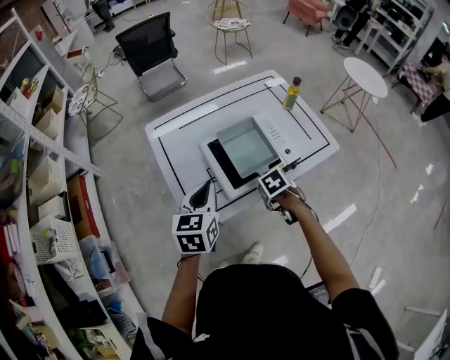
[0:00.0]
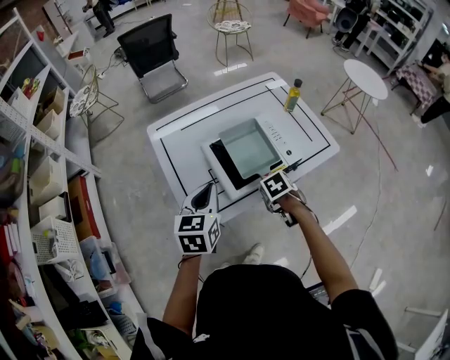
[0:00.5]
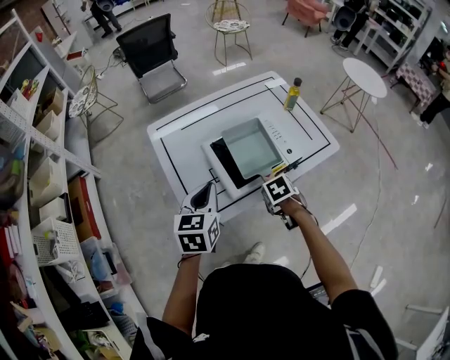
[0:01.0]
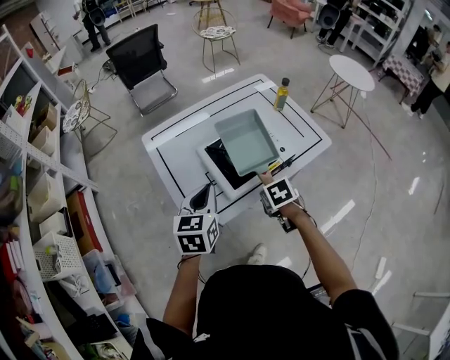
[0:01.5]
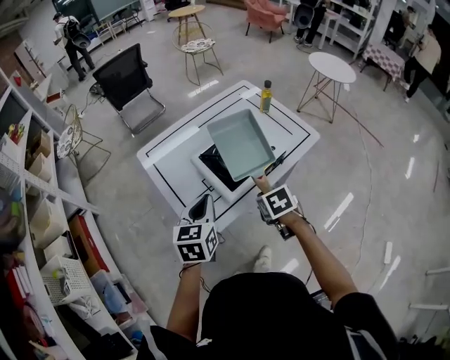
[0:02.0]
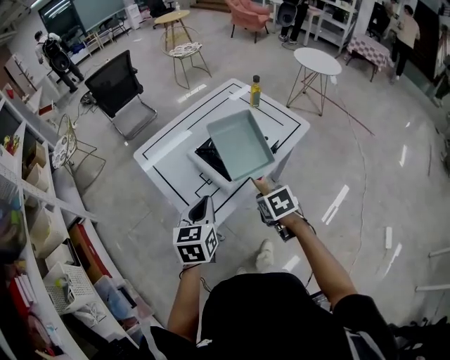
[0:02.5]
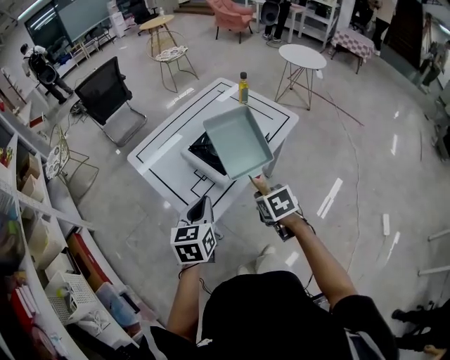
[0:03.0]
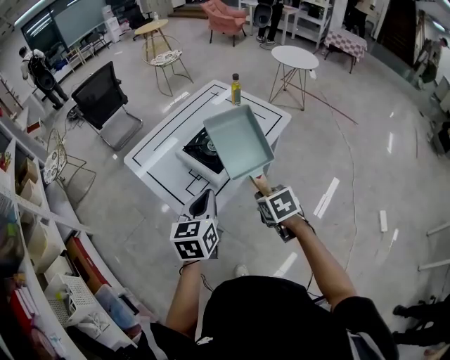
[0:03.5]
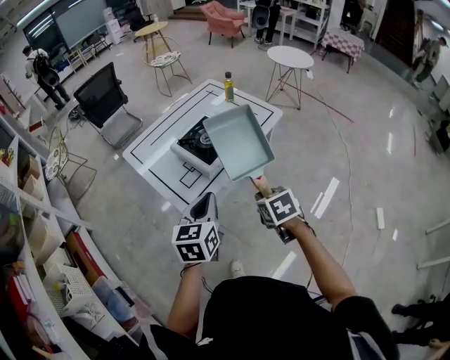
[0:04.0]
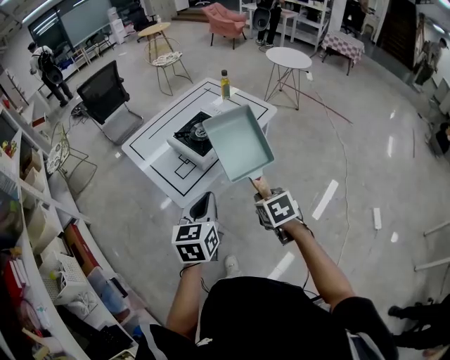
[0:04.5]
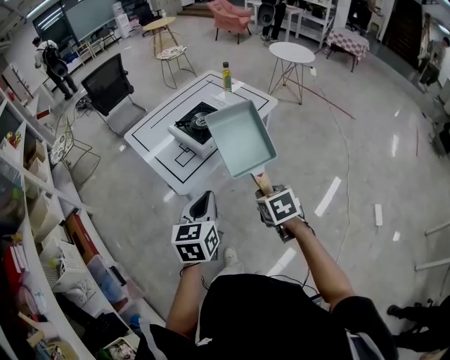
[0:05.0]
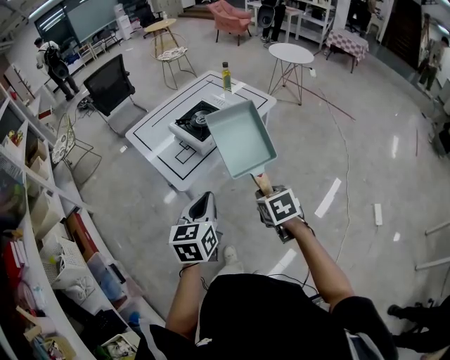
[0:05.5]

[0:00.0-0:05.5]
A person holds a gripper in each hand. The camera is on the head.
0:00.0 to 0:02.0: The right gripper moves upward, approximately 10 cm, and turns by some 30 degrees.
0:02.0 to 0:03.5: The grippers both shift backward by approximately 10 cm.
0:03.5 to 0:05.5: Both grippers move backward, about 20 cm.

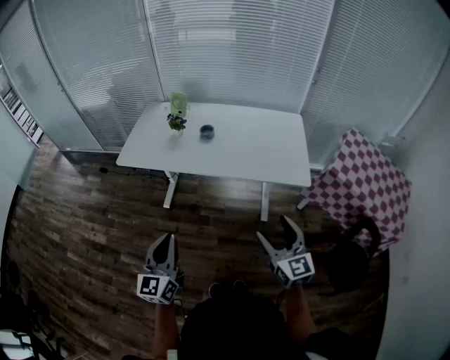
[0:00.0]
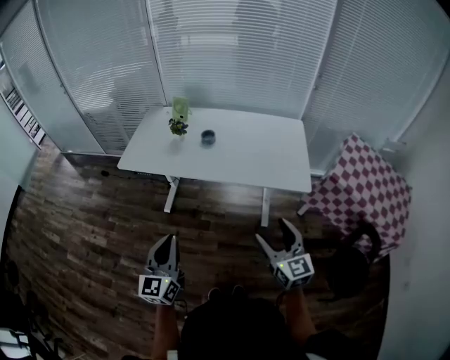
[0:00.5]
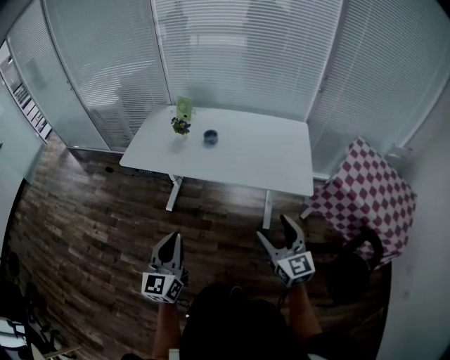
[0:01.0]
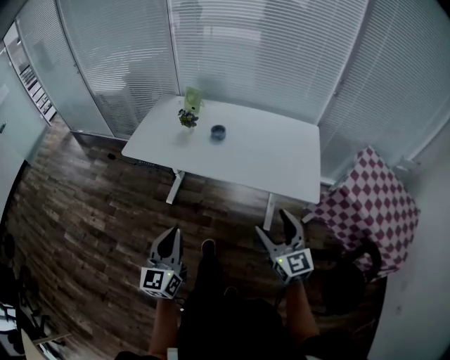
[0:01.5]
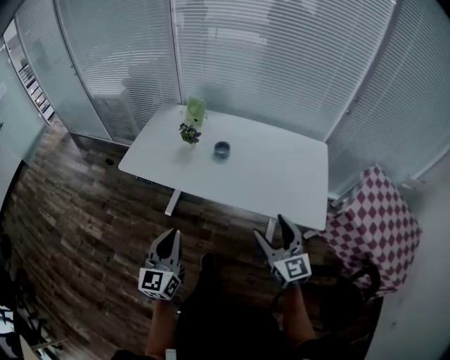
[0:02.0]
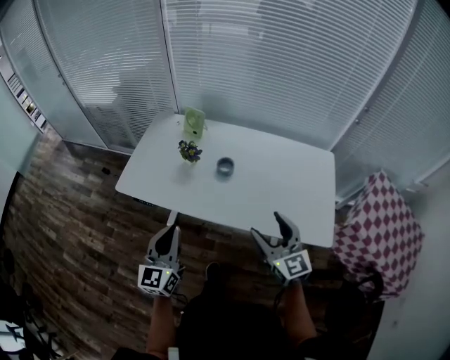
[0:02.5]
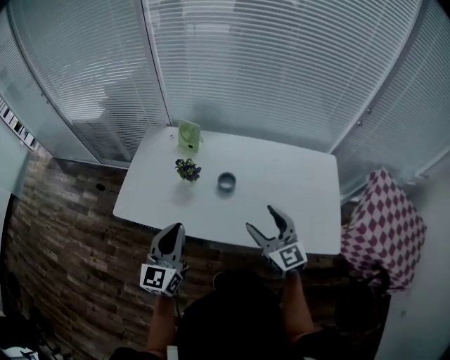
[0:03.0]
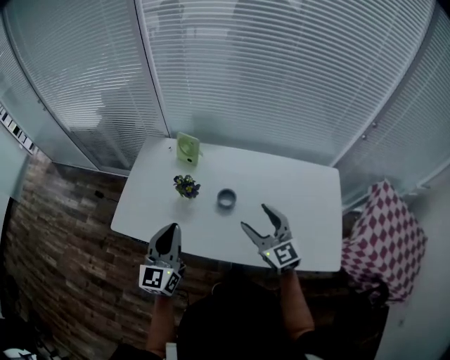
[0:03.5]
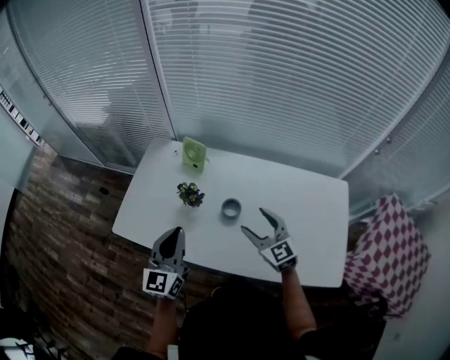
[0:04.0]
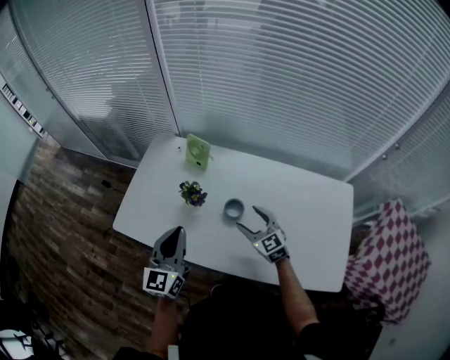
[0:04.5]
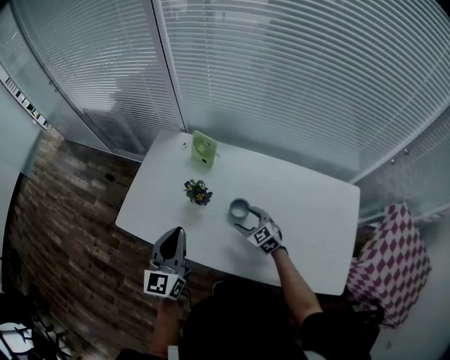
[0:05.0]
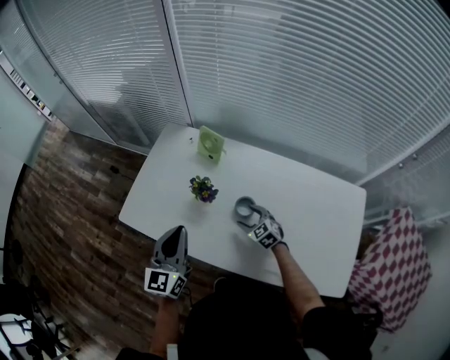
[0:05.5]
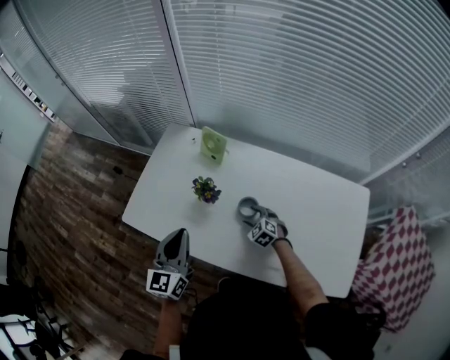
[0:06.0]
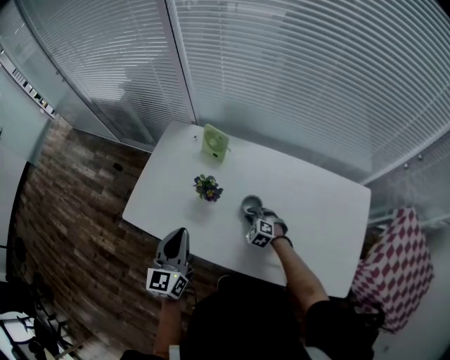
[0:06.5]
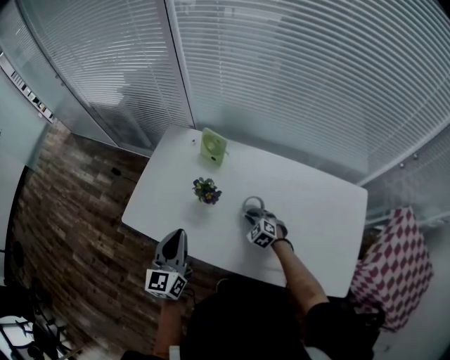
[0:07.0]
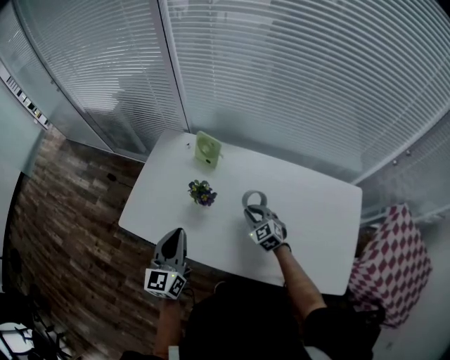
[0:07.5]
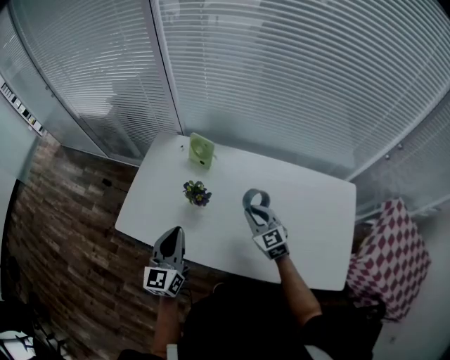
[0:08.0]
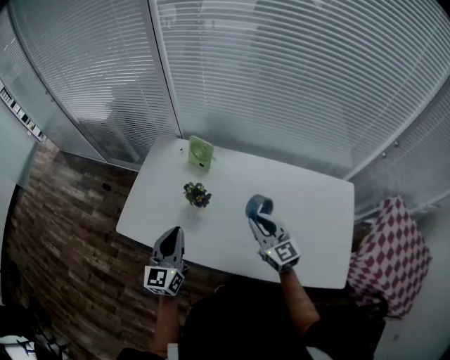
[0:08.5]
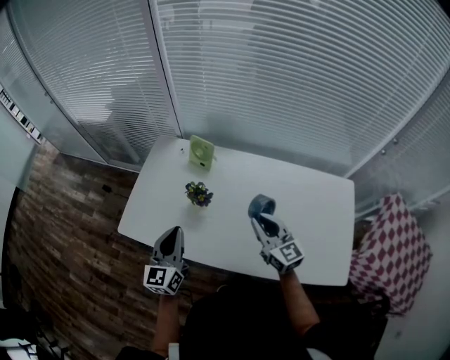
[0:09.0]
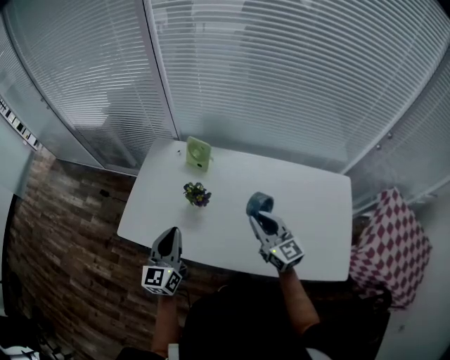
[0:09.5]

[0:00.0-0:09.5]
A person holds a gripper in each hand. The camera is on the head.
0:00.0 to 0:02.0: Both grippers travel together forward, about 15 cm.
0:02.0 to 0:04.0: The grippers both shift forward by some 30 cm.
0:04.0 to 0:05.5: The right gripper goes approximately 20 cm downward, and swivels roughly 30 degrees.
0:05.5 to 0:07.5: The right gripper is displaced upward by roughly 5 cm, and closes.
0:07.5 to 0:09.5: The right gripper is displaced upward by roughly 20 cm, and tilts its fingers some 40 degrees upward.

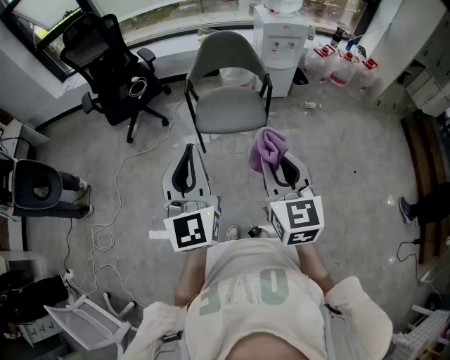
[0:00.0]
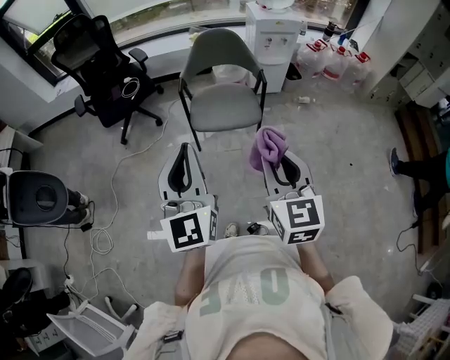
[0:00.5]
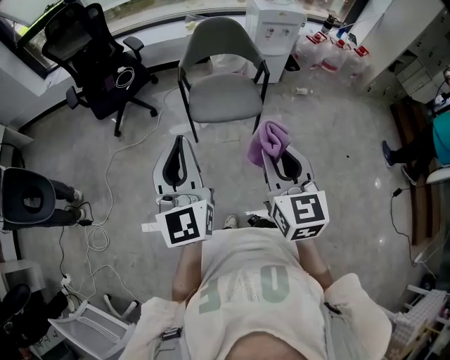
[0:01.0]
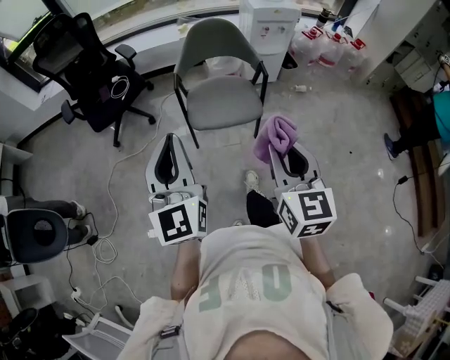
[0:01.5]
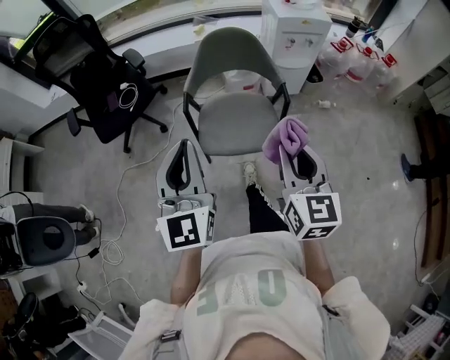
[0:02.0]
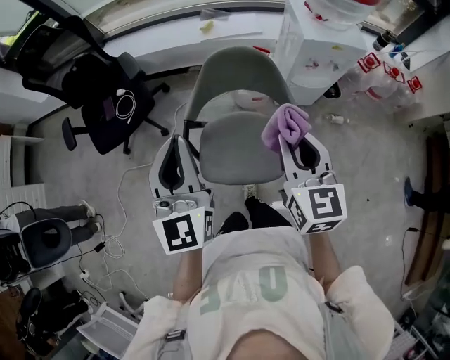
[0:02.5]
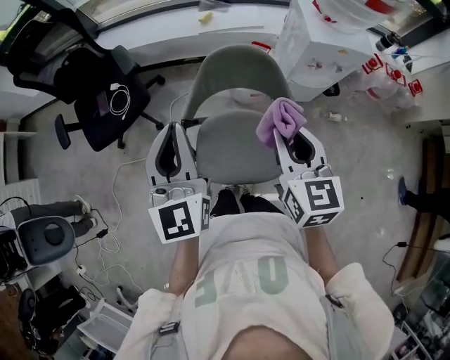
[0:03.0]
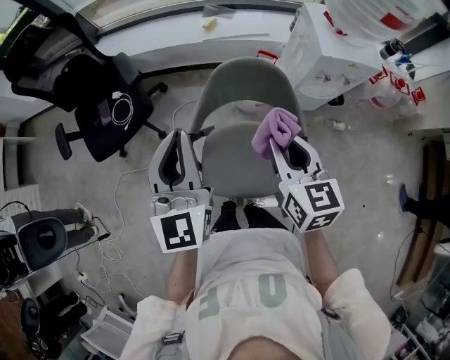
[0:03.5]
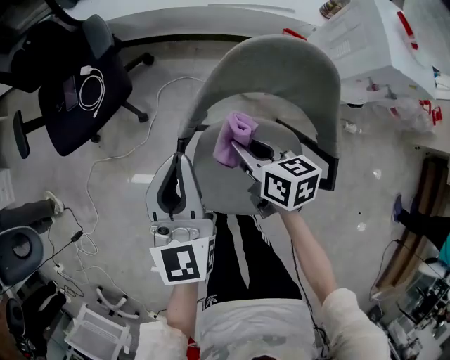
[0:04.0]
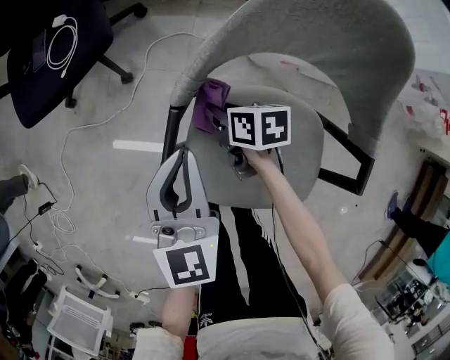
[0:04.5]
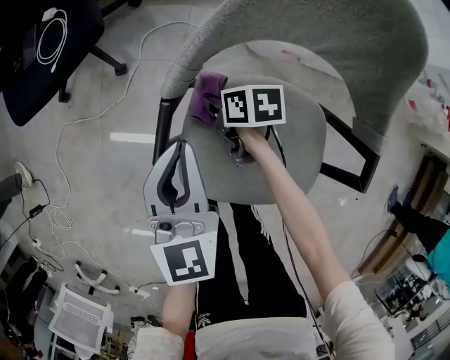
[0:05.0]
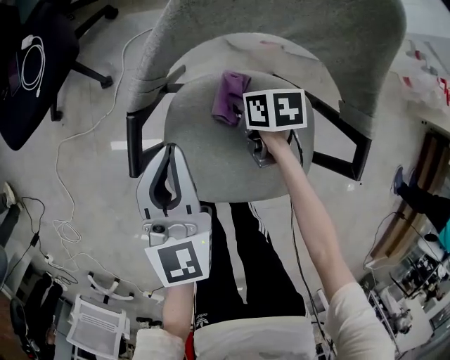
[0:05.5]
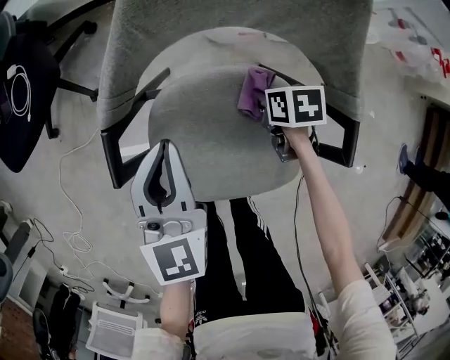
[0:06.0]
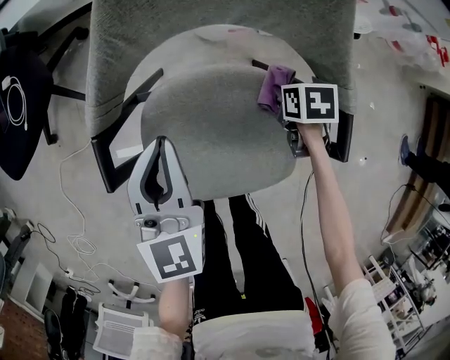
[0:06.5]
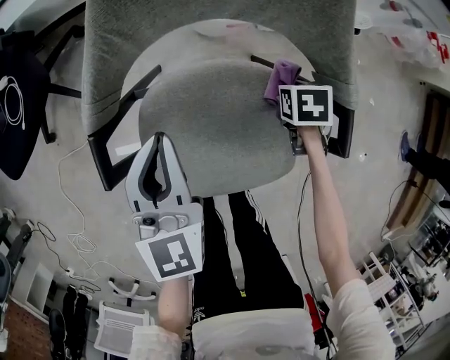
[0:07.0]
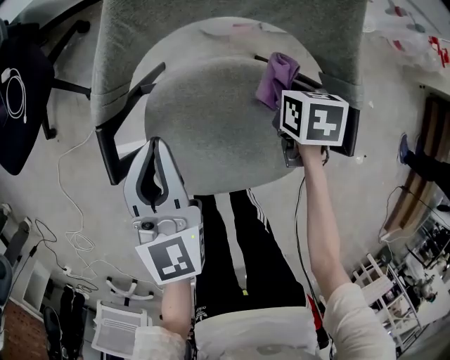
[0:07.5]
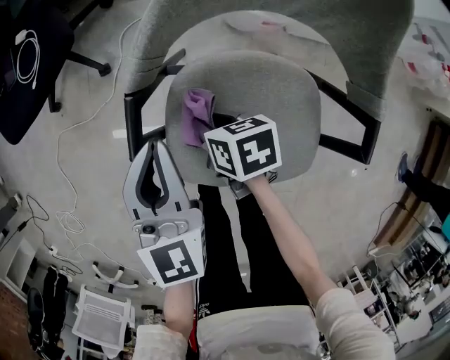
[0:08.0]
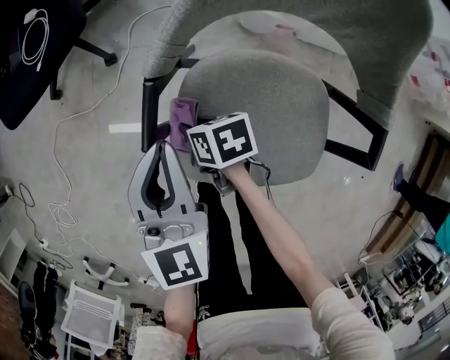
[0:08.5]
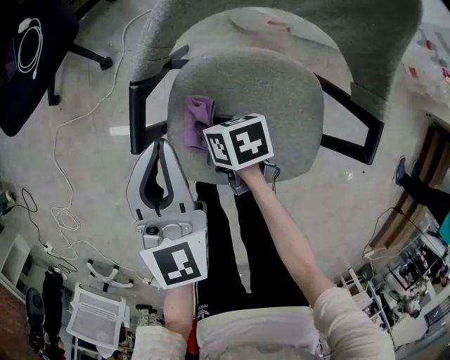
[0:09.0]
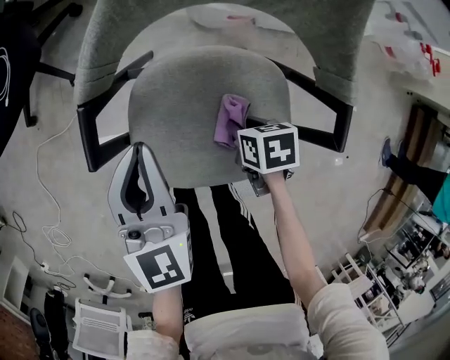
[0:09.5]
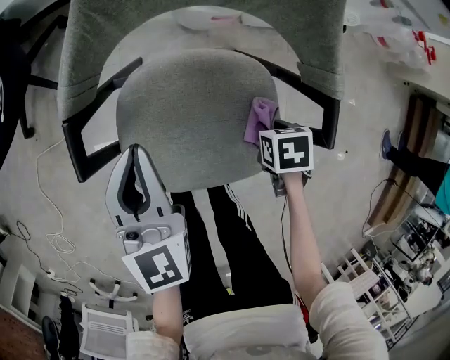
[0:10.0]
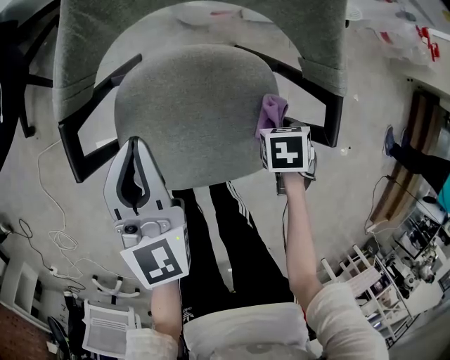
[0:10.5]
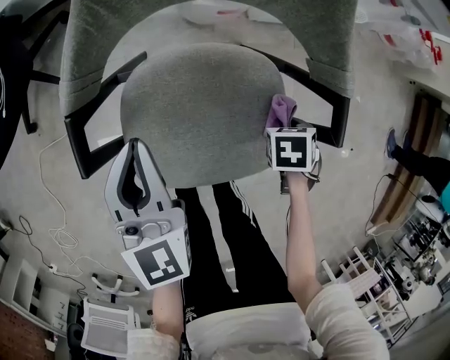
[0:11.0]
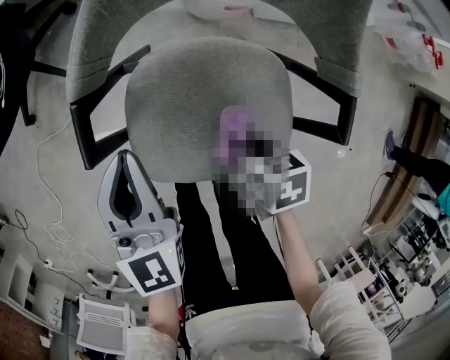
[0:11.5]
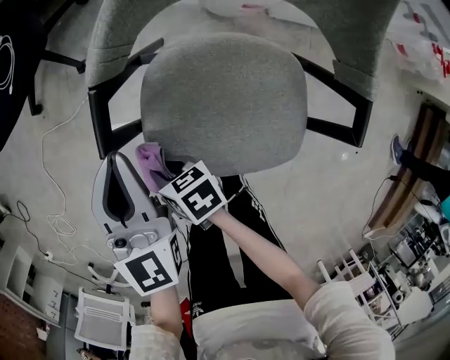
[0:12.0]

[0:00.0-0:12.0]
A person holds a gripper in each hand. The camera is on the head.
0:00.0 to 0:02.0: Both grippers travel together forward, about 25 cm.
0:02.0 to 0:04.0: The left gripper ends up approximately 40 cm from where it was. The right gripper moves roughly 50 cm, and changes its angle by roughly 50 degrees.
0:04.0 to 0:06.0: The right gripper travels downward and to the right by about 30 cm, and tips its fingers downward by some 30 degrees, while the left gripper heads downward, covering approximately 20 cm.
0:06.0 to 0:08.0: The right gripper shifts by roughly 25 cm. Meanwhile the left gripper ends up approximately 5 cm from where it was.
0:08.0 to 0:10.0: The right gripper ends up approximately 30 cm from where it was, and tips its fingers downward by roughly 30 degrees. The left gripper ends up roughly 5 cm from where it was.
0:10.0 to 0:12.0: The right gripper moves about 35 cm, and points its fingers roughly 40 degrees further upward; the left gripper changes place by some 10 cm.
